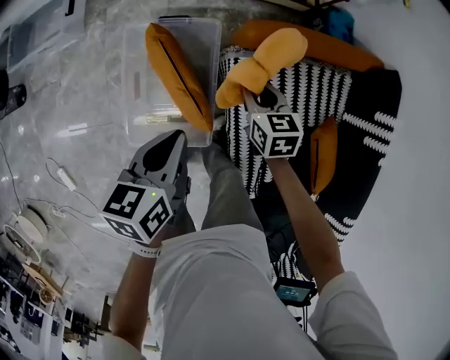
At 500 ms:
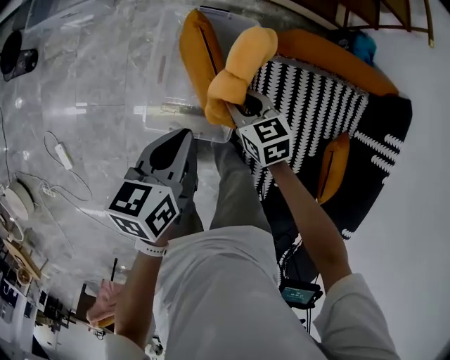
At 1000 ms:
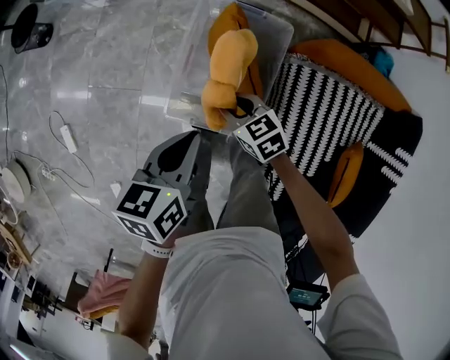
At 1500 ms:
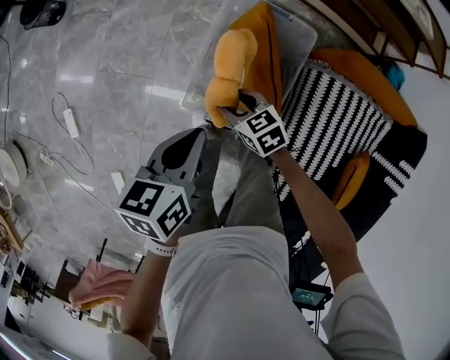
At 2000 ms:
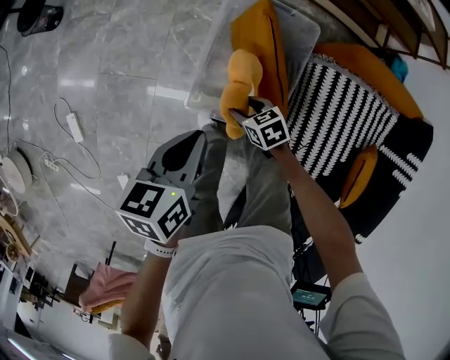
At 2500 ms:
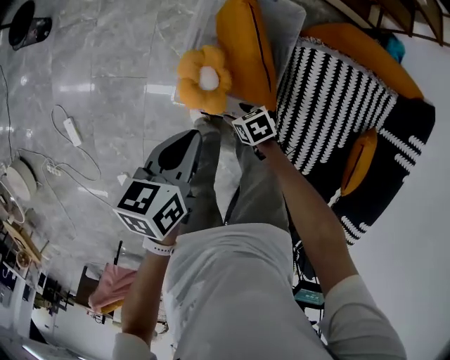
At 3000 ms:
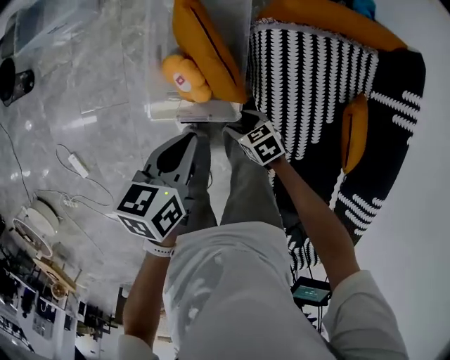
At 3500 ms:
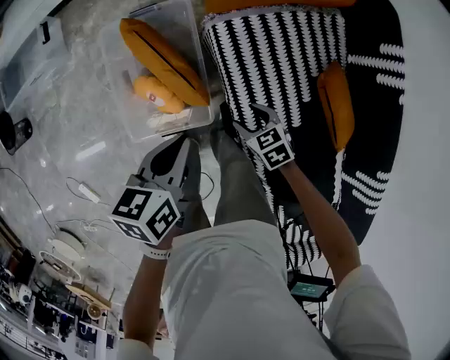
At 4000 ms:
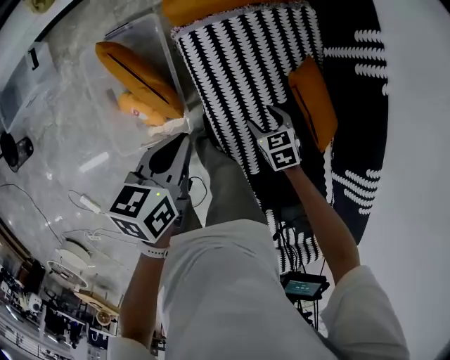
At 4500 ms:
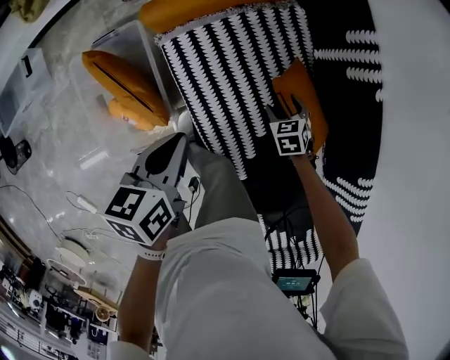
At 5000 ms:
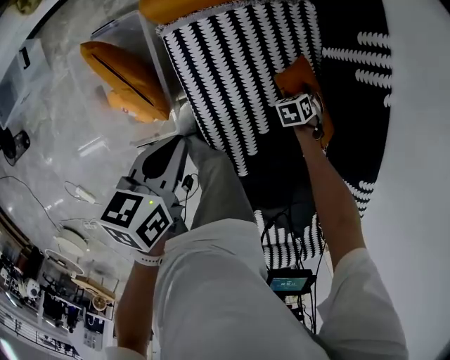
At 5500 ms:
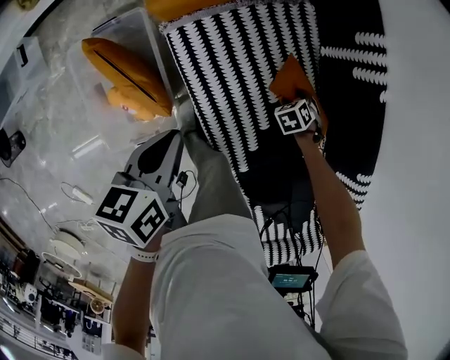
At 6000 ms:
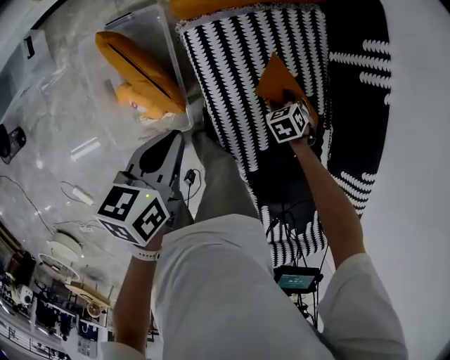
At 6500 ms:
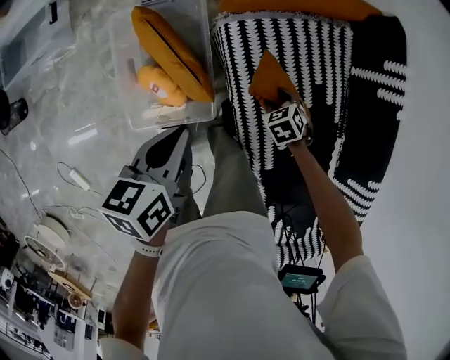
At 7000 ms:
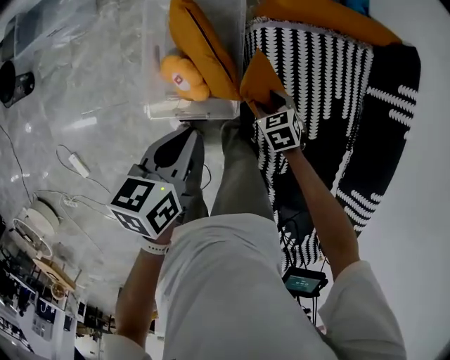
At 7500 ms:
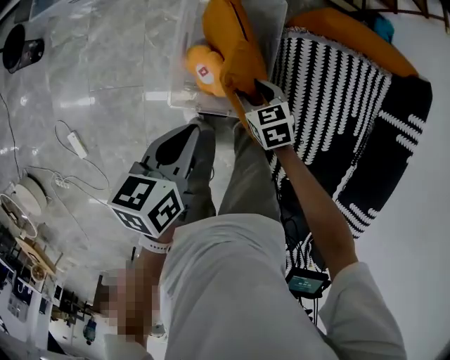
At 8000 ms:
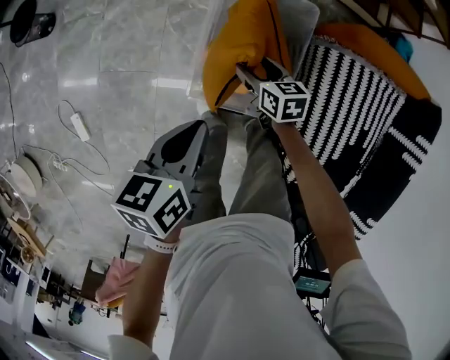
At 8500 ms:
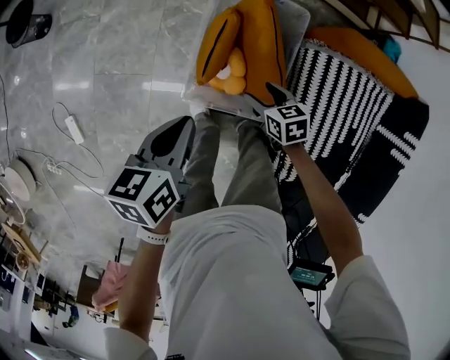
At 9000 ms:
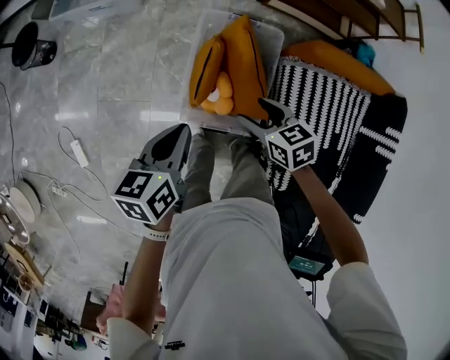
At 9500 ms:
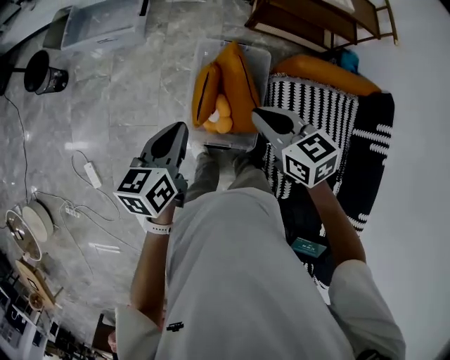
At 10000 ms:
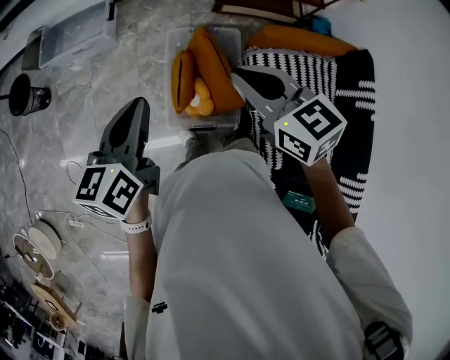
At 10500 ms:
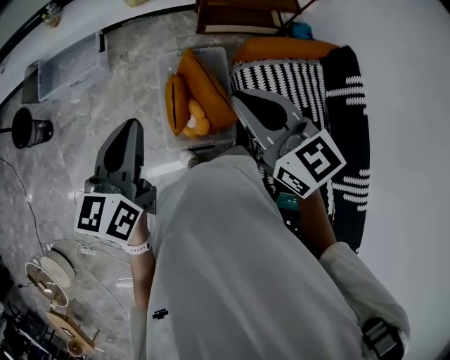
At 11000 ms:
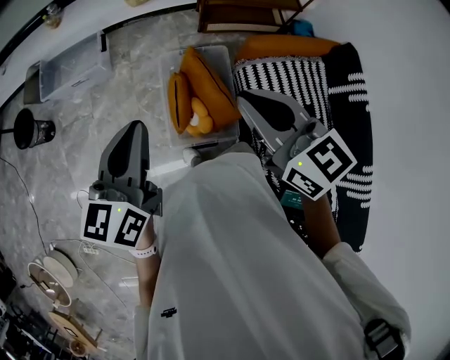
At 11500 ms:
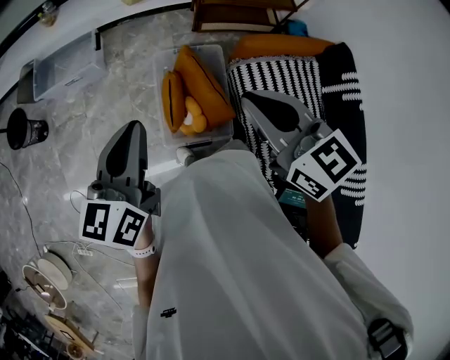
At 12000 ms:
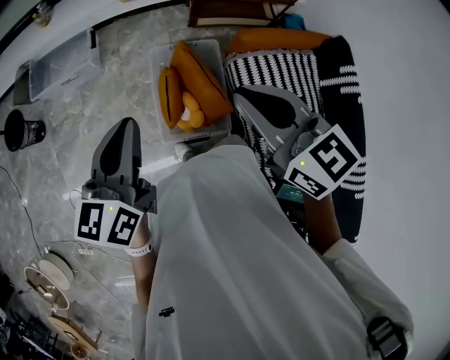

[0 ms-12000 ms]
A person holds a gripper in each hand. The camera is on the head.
0 ms to 2000 ms: The right gripper changes place by about 40 cm, and swivels some 40 degrees. Meanwhile the left gripper shifts by approximately 30 cm.
2000 ms to 4000 ms: The pair of grippers is taken roughly 50 cm. The left gripper changes its angle by approximately 30 degrees; the right gripper swivels approximately 40 degrees.
4000 ms to 6000 ms: The right gripper turns by about 20 degrees.
6000 ms to 8000 ms: The pair of grippers is taken roughly 50 cm. The left gripper changes its angle by approximately 30 degrees. Meanwhile the right gripper tips its fingers upward by roughly 30 degrees.
8000 ms to 10000 ms: The right gripper heads upward, covering roughly 50 cm, changes its angle by about 30 degrees, and closes up. The left gripper goes some 30 cm upward, and turns by roughly 30 degrees.
10000 ms to 12000 ms: The left gripper goes about 5 cm upward, while the right gripper moves upward and backward, about 10 cm.

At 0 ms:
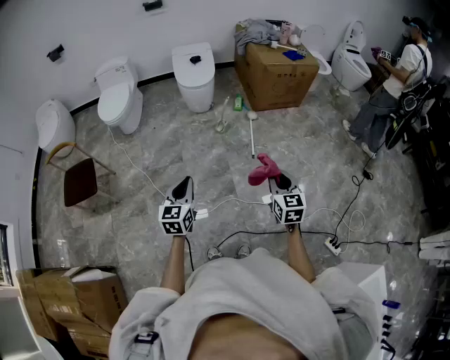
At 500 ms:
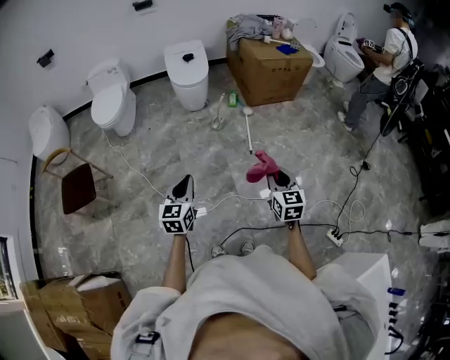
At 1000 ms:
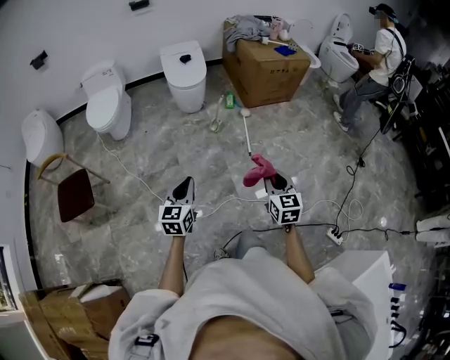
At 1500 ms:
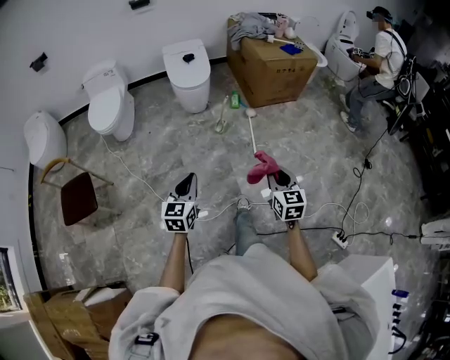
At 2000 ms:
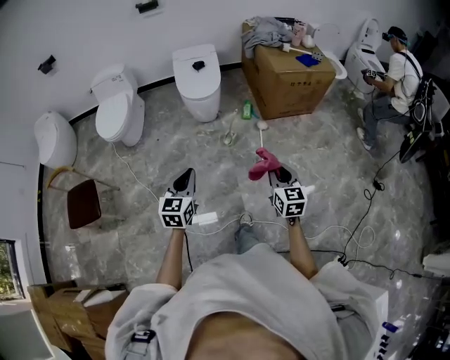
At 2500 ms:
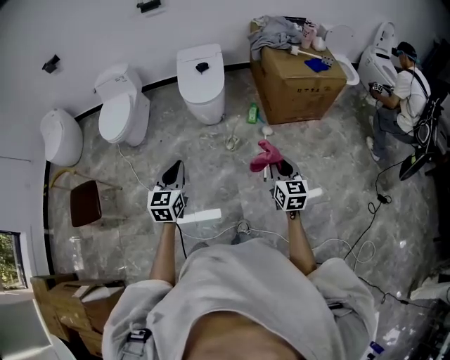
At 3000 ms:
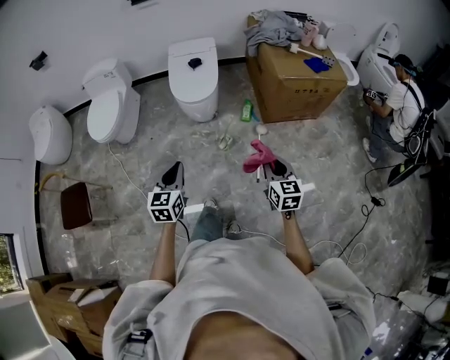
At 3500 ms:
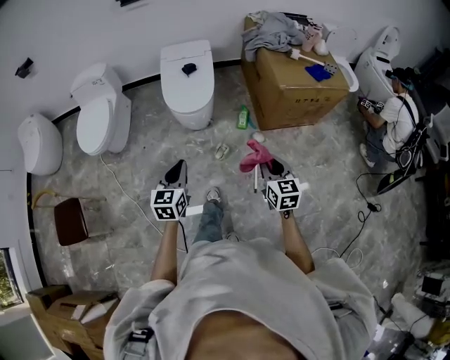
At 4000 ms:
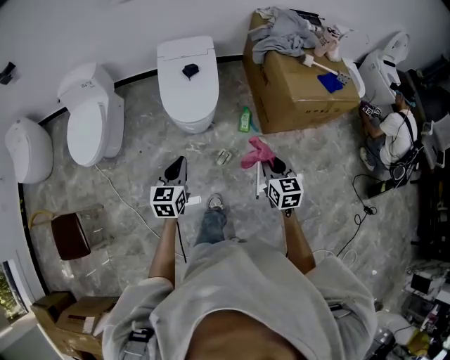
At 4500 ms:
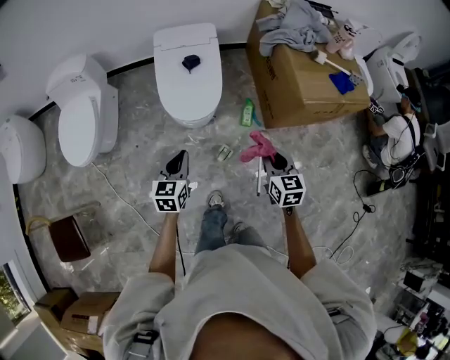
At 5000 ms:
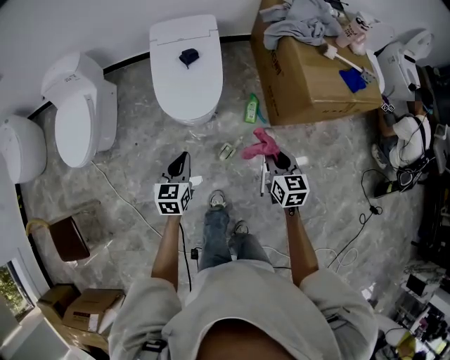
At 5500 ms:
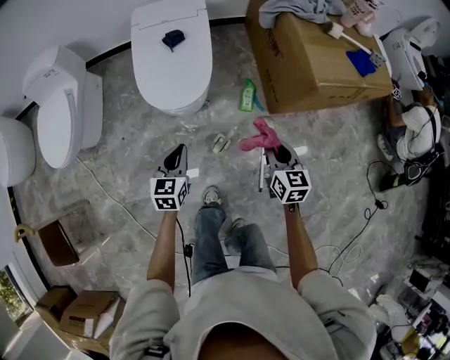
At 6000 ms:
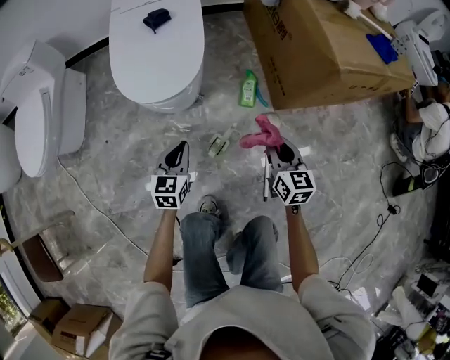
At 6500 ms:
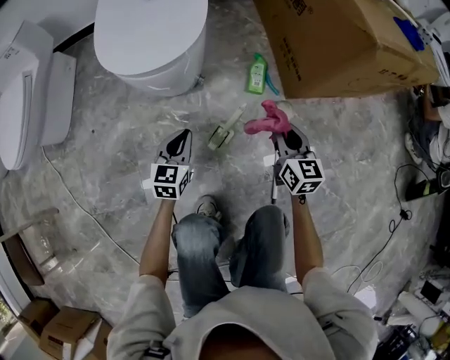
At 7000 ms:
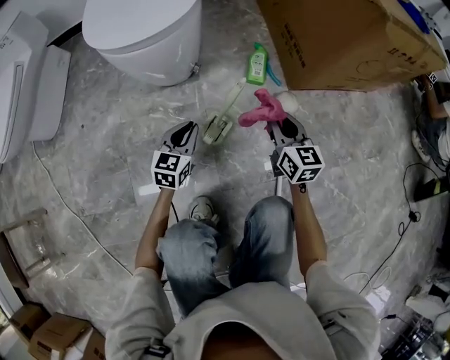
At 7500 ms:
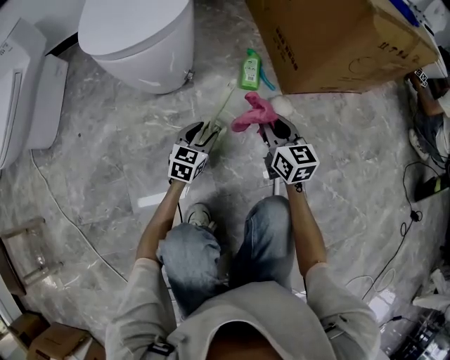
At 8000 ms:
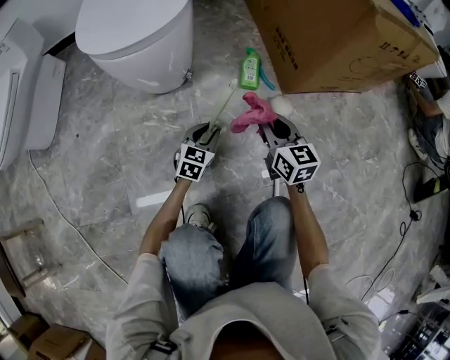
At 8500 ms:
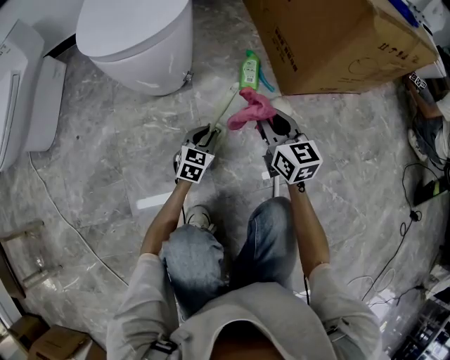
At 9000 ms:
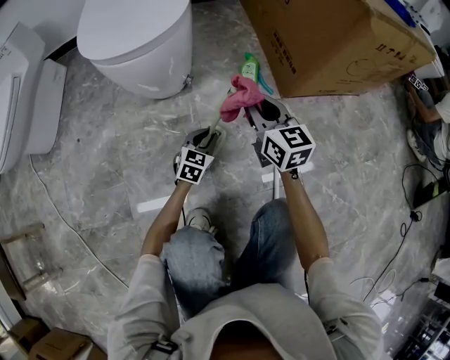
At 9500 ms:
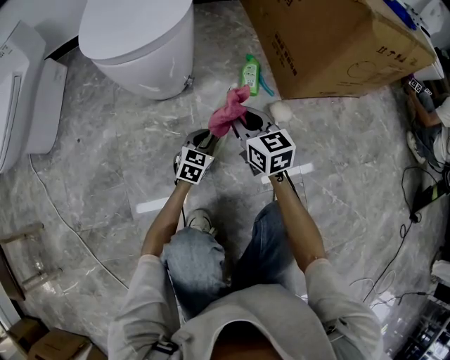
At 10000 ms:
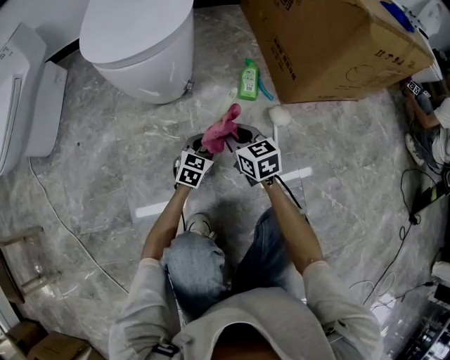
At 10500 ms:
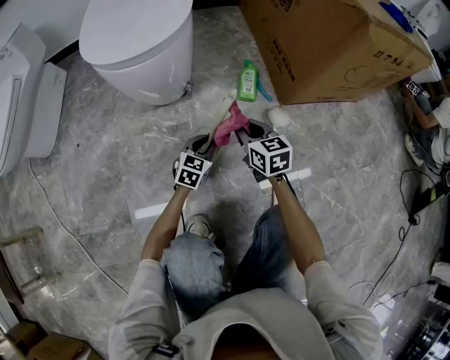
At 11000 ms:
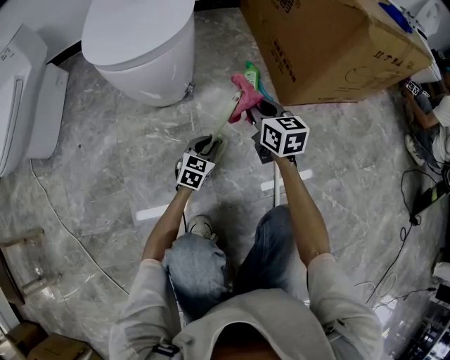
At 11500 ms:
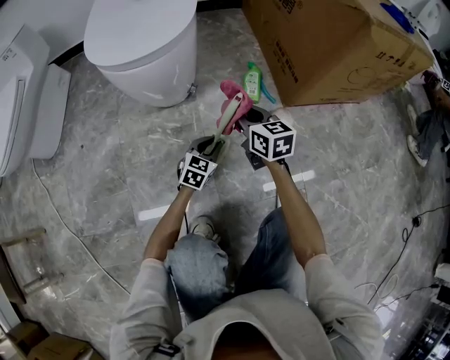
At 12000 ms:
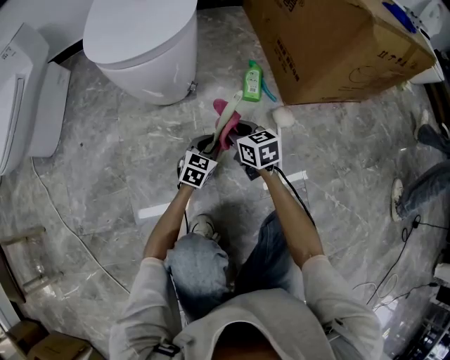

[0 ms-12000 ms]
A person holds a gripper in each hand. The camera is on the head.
0 ms to 2000 ms: Both grippers move forward, about 20 cm.
2000 ms to 4000 ms: The two grippers travel together, forward, approximately 40 cm.
4000 ms to 6000 ms: Both grippers travel together downward, approximately 35 cm.
6000 ms to 8000 ms: The left gripper goes some 30 cm downward, and opens up; the right gripper travels downward by some 20 cm.
8000 ms to 10000 ms: The right gripper shifts about 10 cm to the left and downward.
10000 ms to 12000 ms: The right gripper reaches about 5 cm upward, then returns.

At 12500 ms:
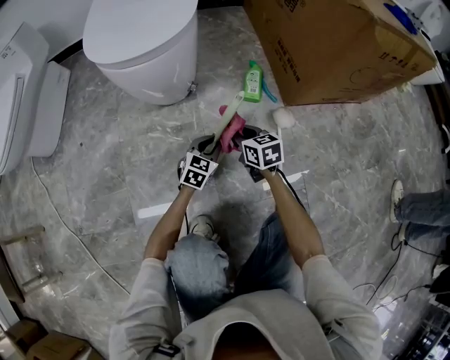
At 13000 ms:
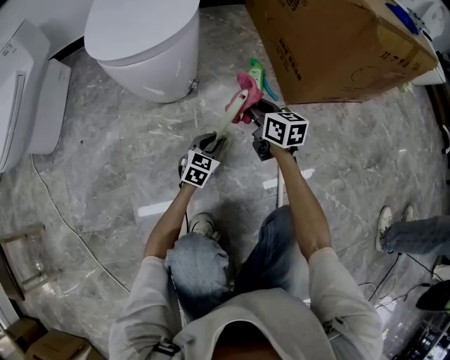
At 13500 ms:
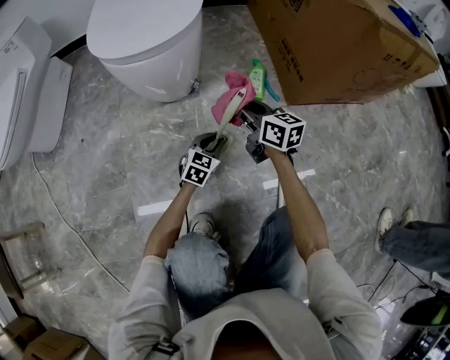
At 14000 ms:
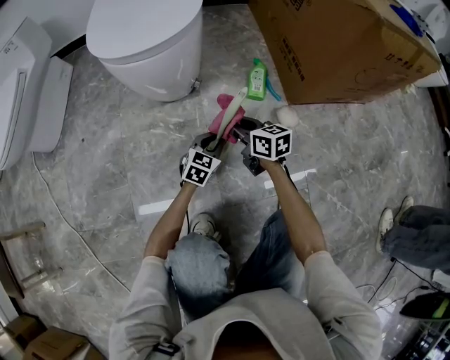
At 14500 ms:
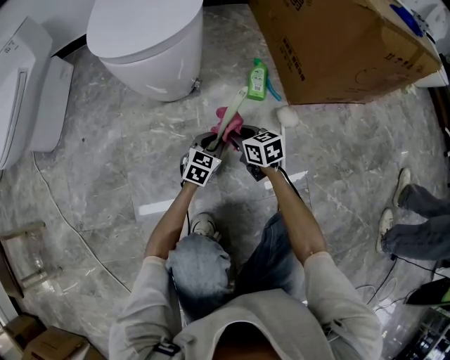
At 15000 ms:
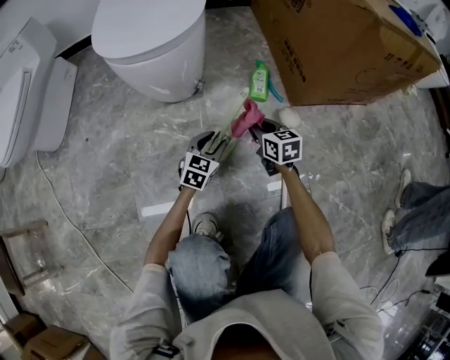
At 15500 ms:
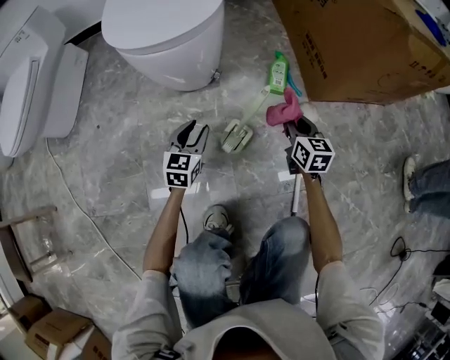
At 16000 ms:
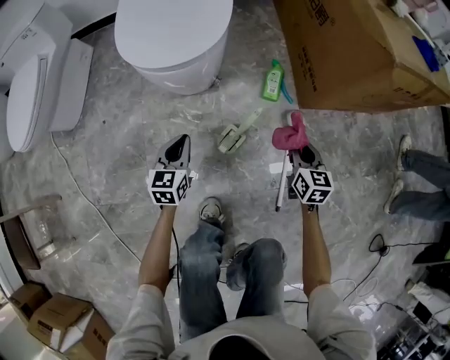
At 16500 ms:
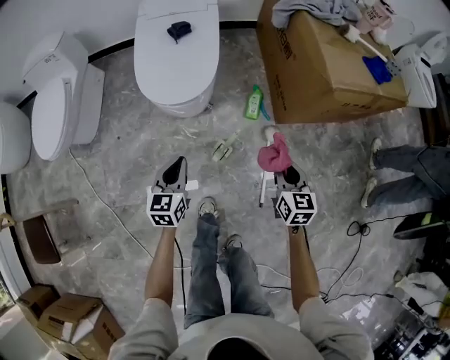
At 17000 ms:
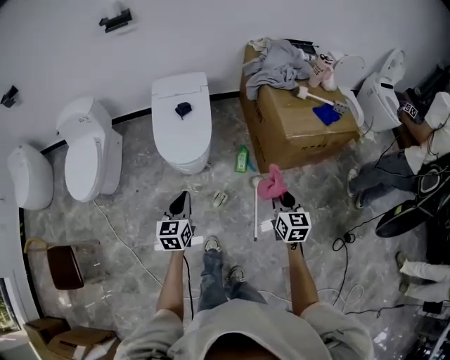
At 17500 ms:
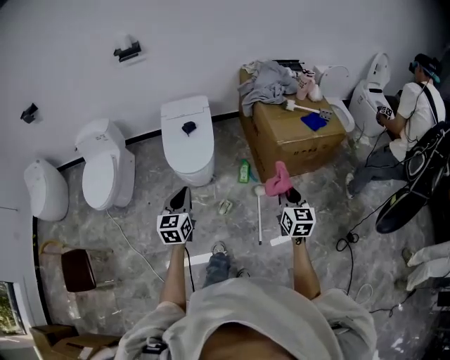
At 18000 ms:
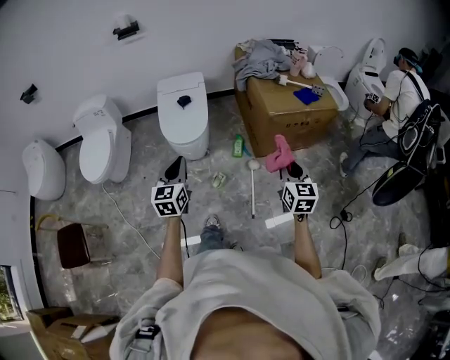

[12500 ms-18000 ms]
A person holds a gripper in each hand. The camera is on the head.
12500 ms to 14500 ms: The right gripper moves about 10 cm upward and comes back.
14500 ms to 16000 ms: The left gripper goes about 25 cm upward and to the left, and swivels some 30 degrees. Meanwhile the right gripper moves upward and to the right, approximately 20 cm, and turns by some 30 degrees.
16000 ms to 18000 ms: The two grippers go about 60 cm upward.
